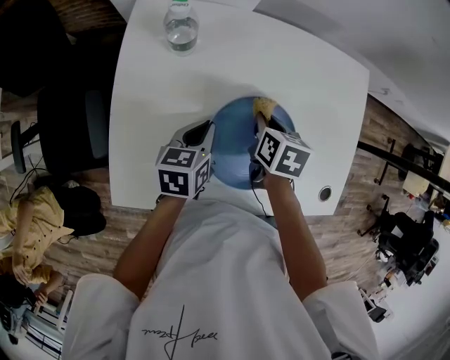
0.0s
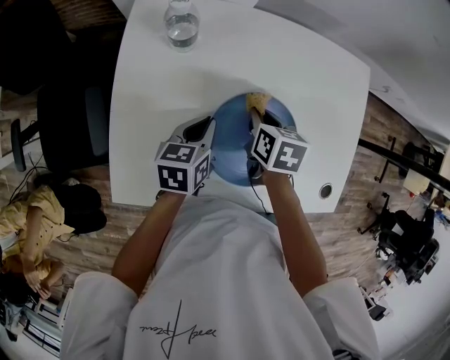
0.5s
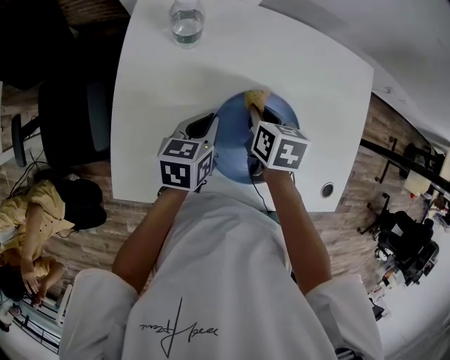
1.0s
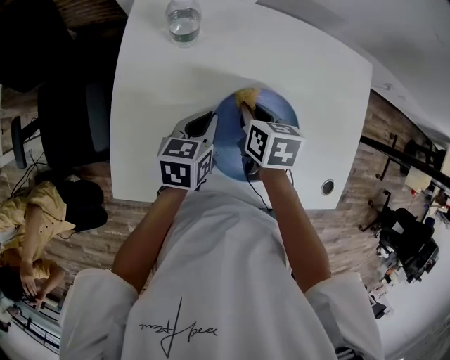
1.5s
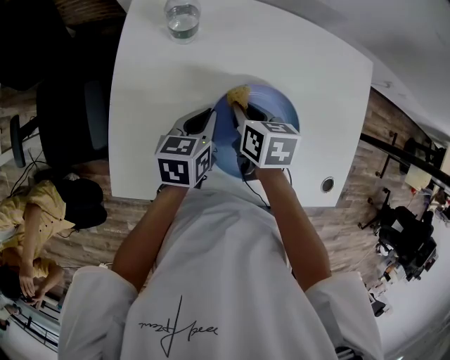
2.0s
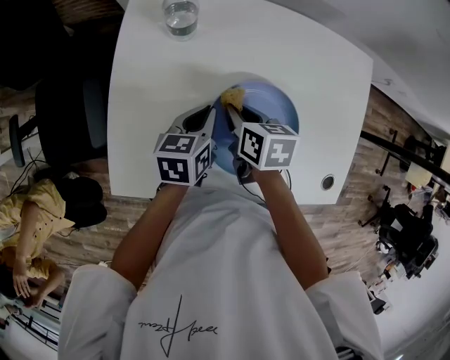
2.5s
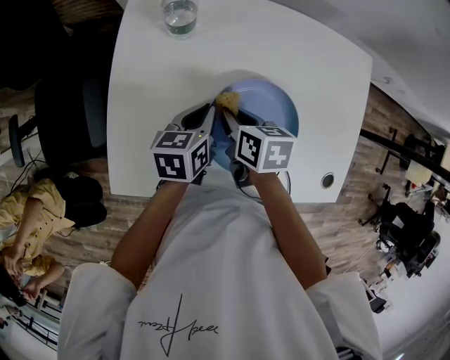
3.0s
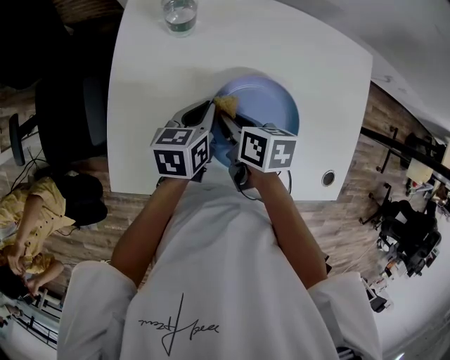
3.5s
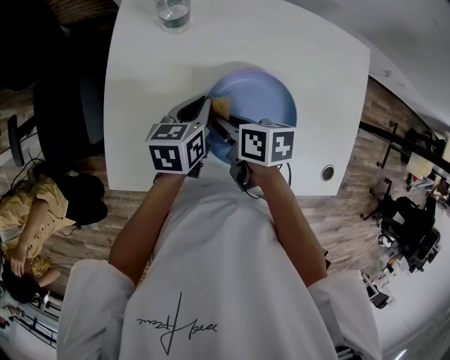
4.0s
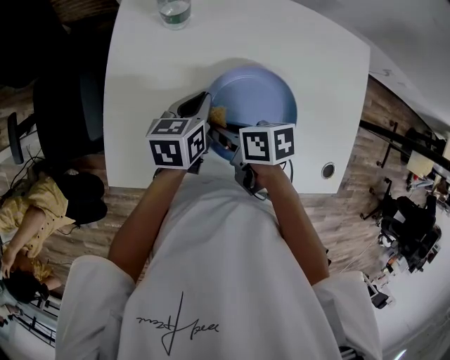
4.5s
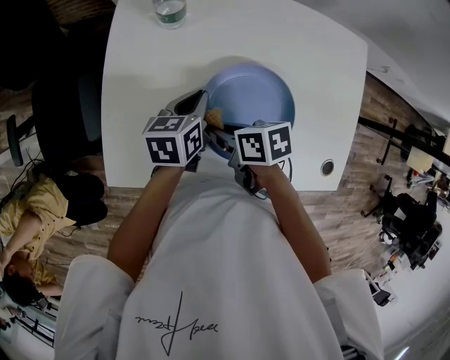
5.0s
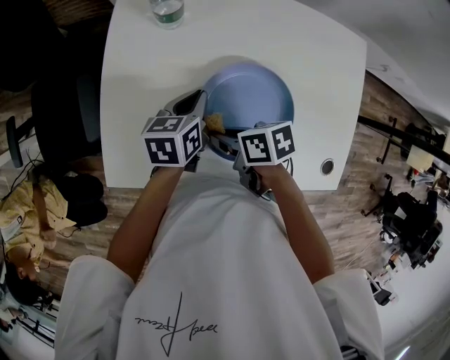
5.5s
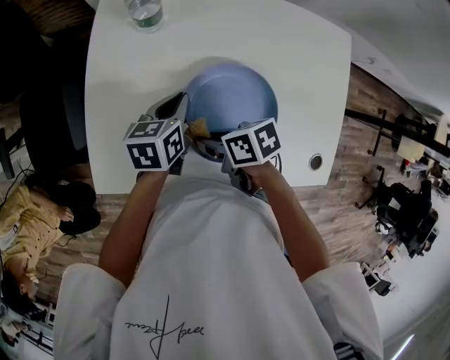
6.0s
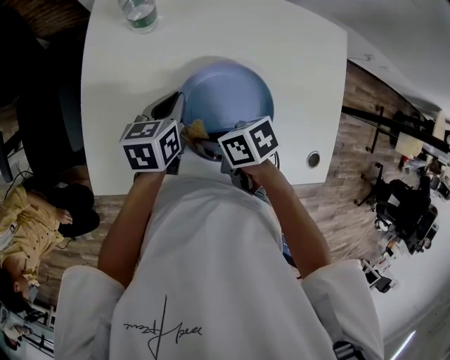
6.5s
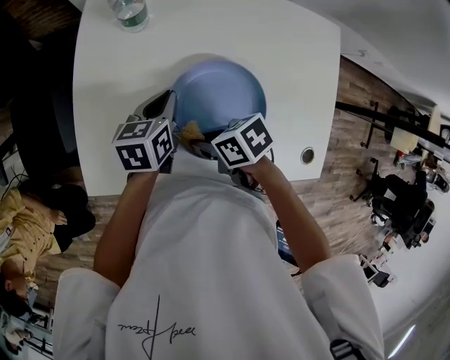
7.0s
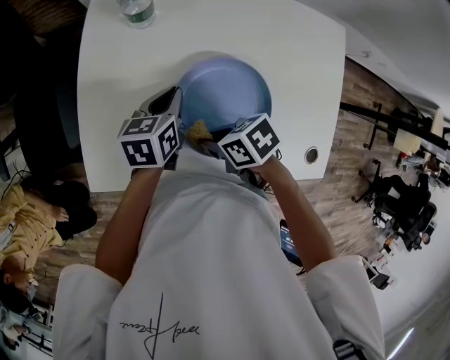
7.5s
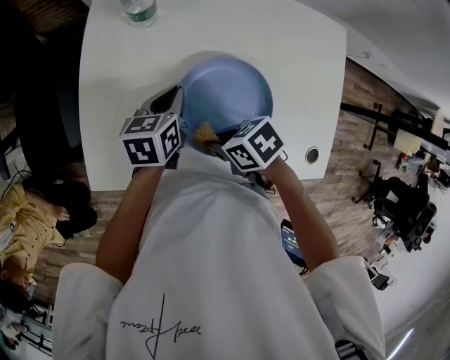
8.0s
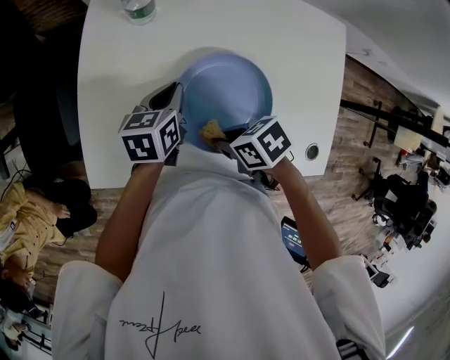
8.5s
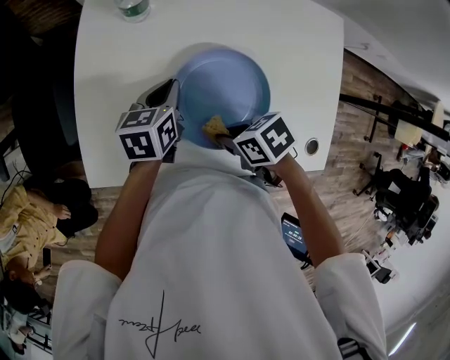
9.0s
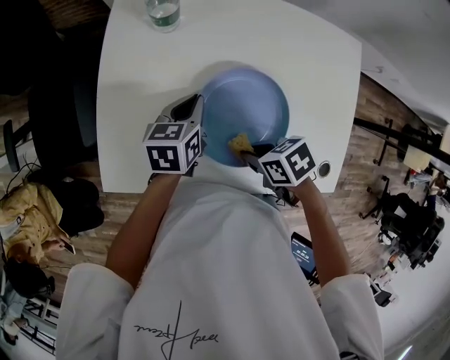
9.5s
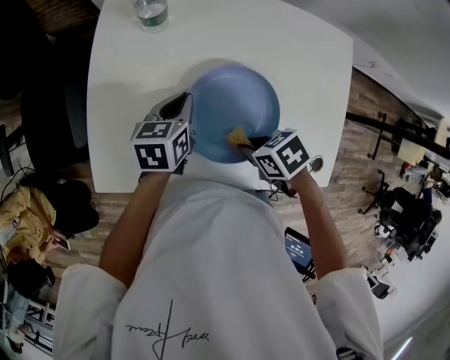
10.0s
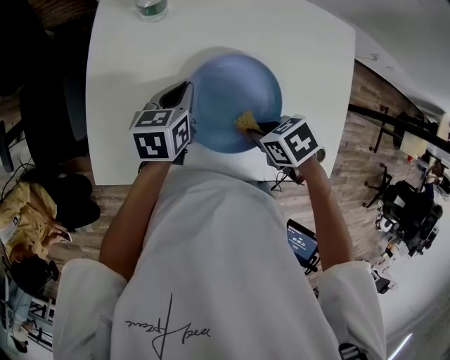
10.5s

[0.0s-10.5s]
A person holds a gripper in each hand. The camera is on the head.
0.0s to 2.0s: The right gripper travels to the left by roughly 5 cm.
2.0s to 4.0s: The right gripper goes about 5 cm backward, and swivels about 20 degrees.
4.0s to 6.5s: The right gripper is displaced backward by roughly 5 cm, and turns by roughly 20 degrees.
6.5s to 8.5s: The right gripper moves about 5 cm.
8.5s to 10.5s: The right gripper changes place by roughly 10 cm.

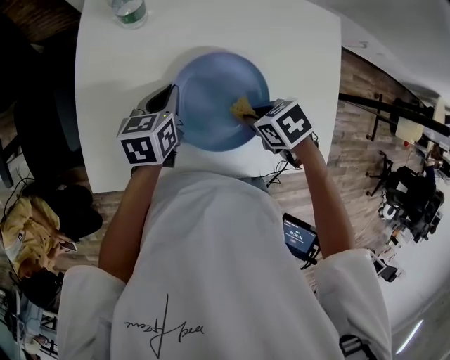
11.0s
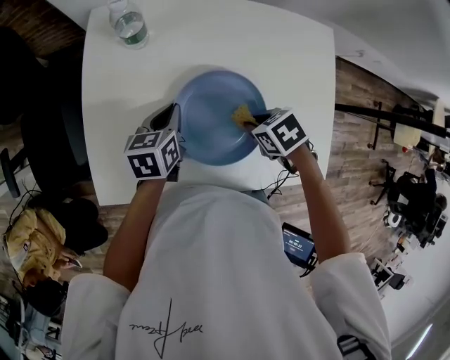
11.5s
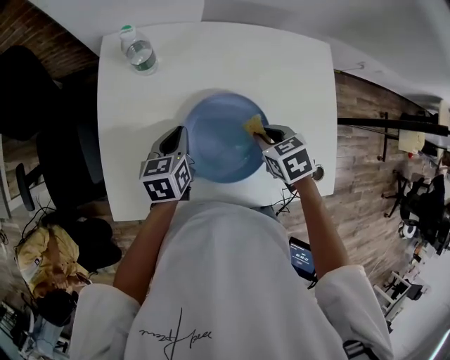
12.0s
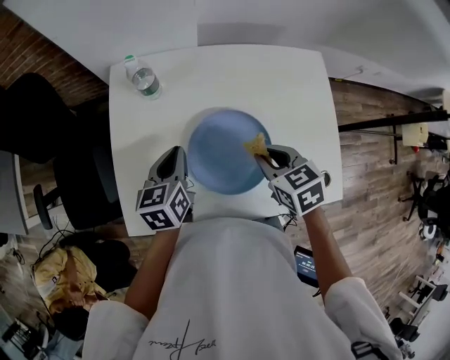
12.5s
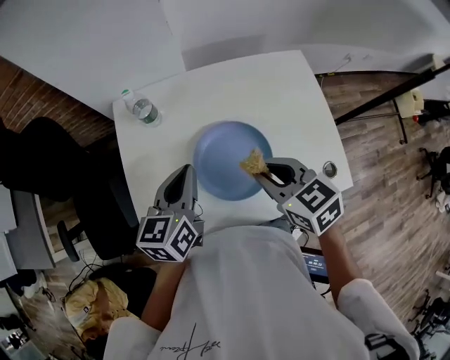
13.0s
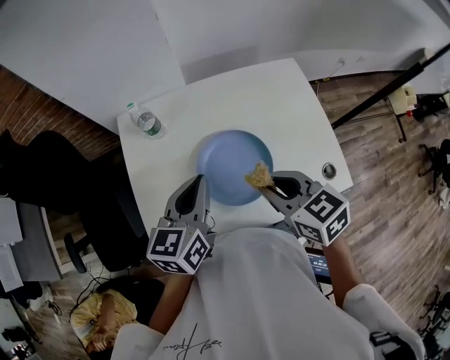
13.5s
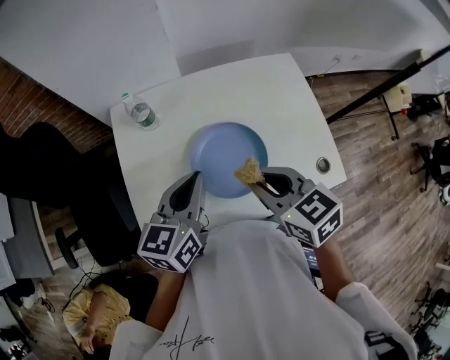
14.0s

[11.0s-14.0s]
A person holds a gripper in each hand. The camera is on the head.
11.0s to 12.5s: Both grippers move upward, approximately 10 cm. The right gripper turns by roughly 40 degrees.
12.5s to 14.0s: The two grippers go some 15 cm upward and backward. The left gripper swivels some 30 degrees.

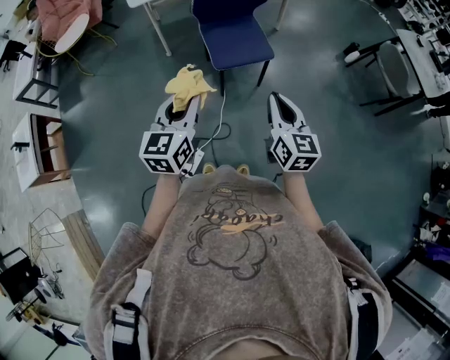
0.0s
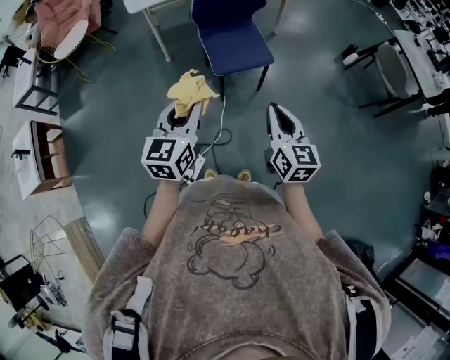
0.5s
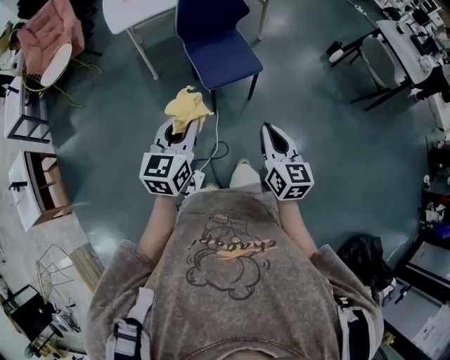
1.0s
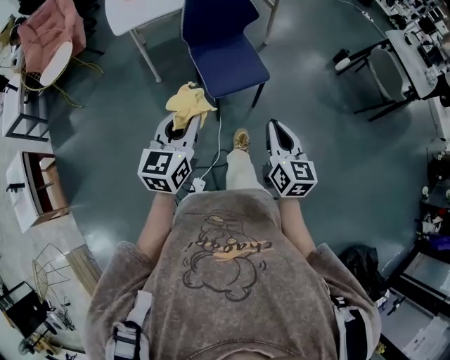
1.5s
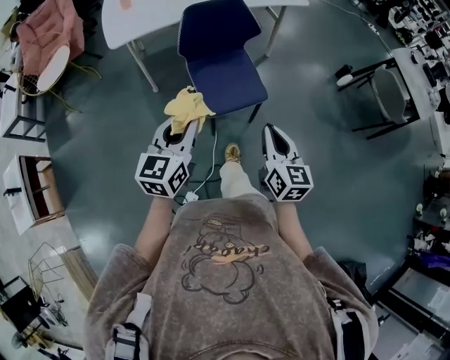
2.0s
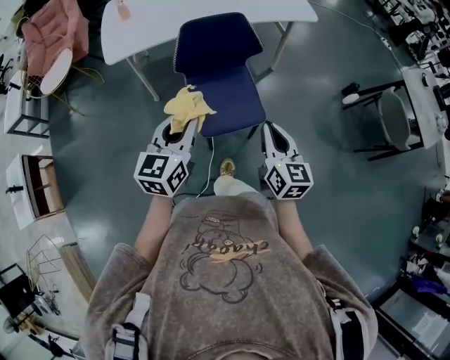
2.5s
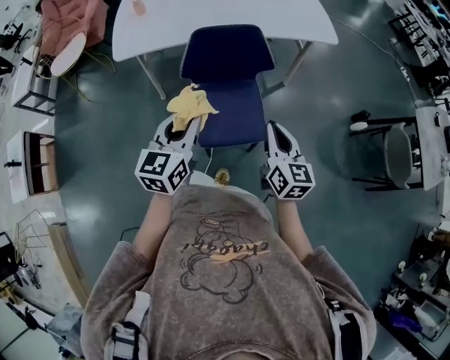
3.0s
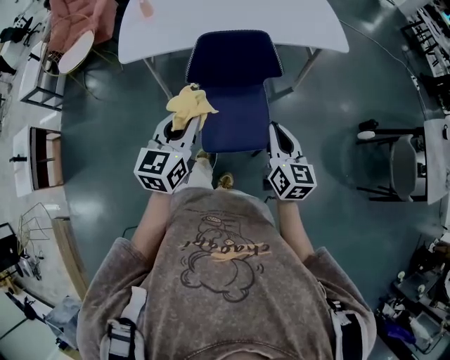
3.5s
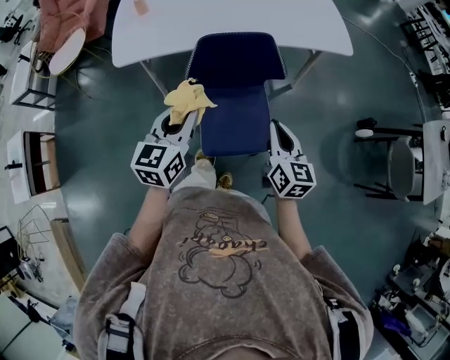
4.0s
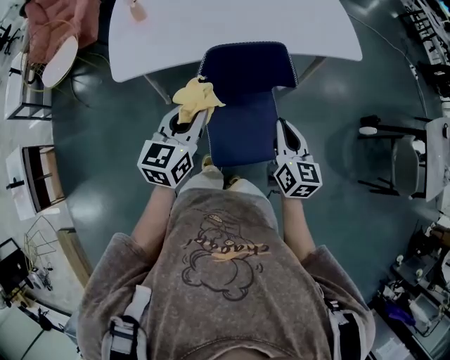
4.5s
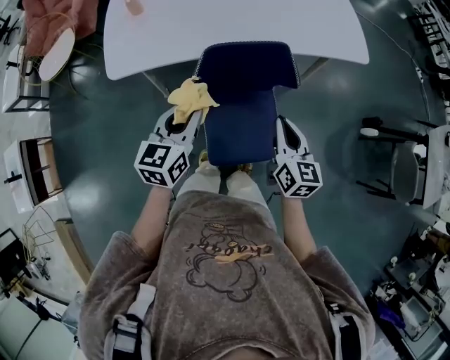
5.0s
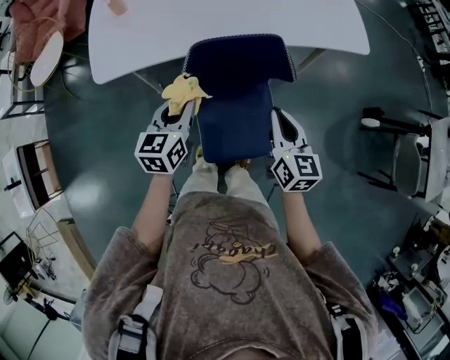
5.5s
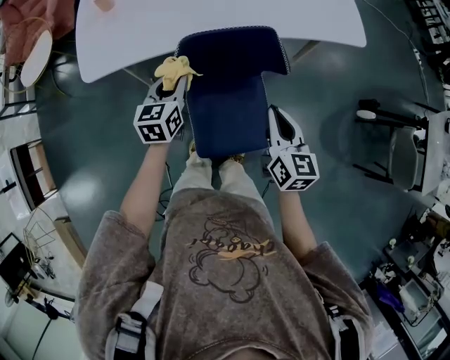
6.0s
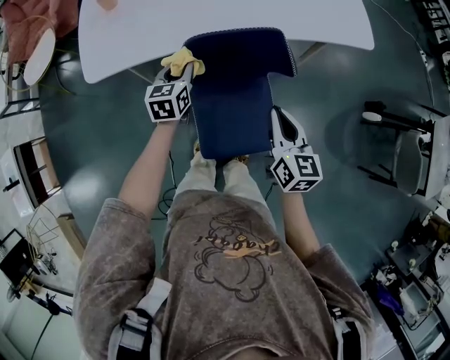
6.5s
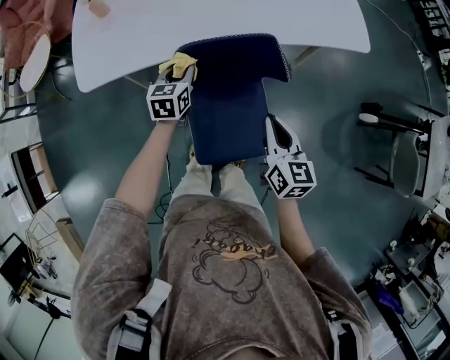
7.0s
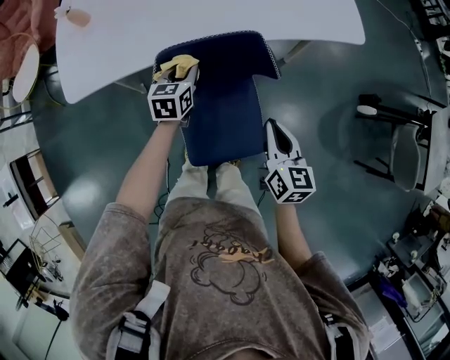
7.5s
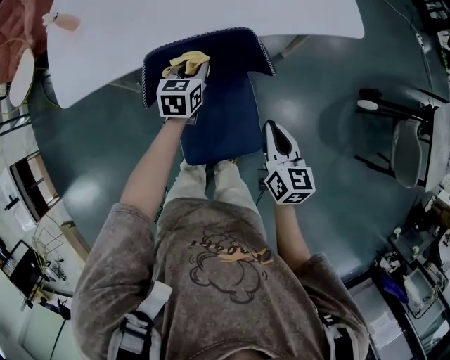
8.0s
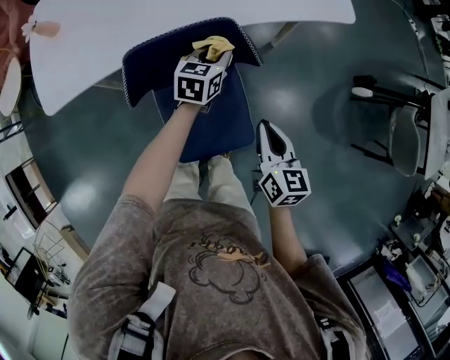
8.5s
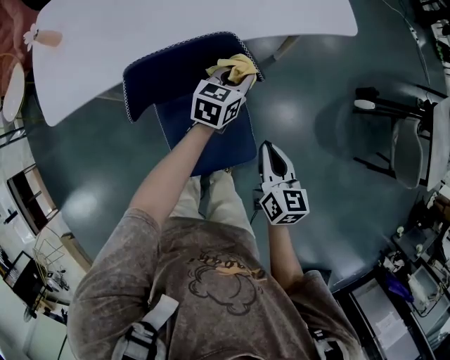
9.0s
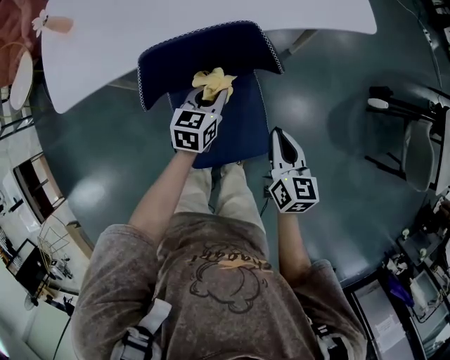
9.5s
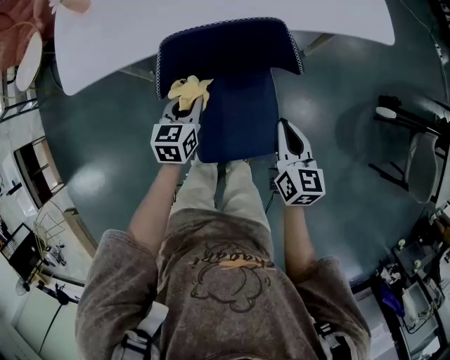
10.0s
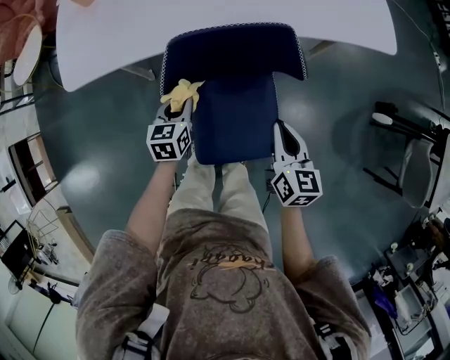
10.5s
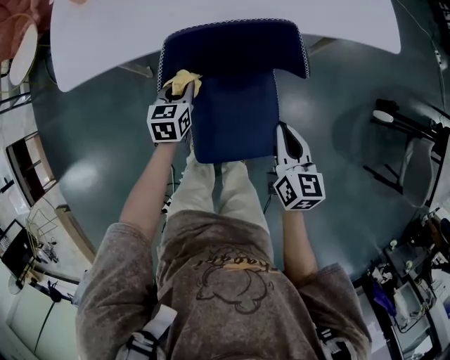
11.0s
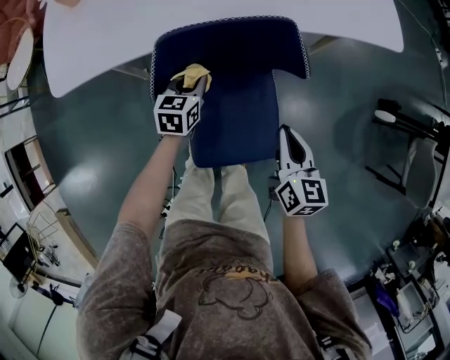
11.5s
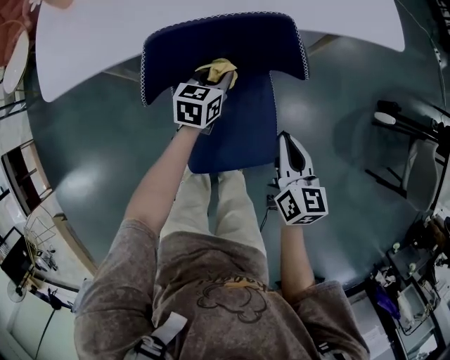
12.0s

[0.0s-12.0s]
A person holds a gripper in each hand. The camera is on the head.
0.0s to 2.0s: The grippers both shift forward by approximately 20 cm.
2.0s to 4.0s: The grippers both shift forward by approximately 30 cm.
4.0s to 6.0s: The left gripper shifts about 25 cm forward and downward. The right gripper travels forward and downward by approximately 15 cm.
6.0s to 8.0s: The right gripper travels to the right and downward by approximately 10 cm. The left gripper travels to the right, forward and downward by approximately 20 cm.
8.0s to 10.0s: The left gripper heads backward, covering roughly 10 cm, and travels to the right and back again, about 15 cm each way, while the right gripper shifts roughly 5 cm downward.
10.0s to 12.0s: The left gripper heads forward, to the right and downward, covering about 15 cm.

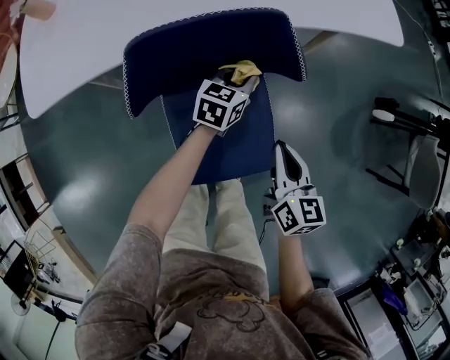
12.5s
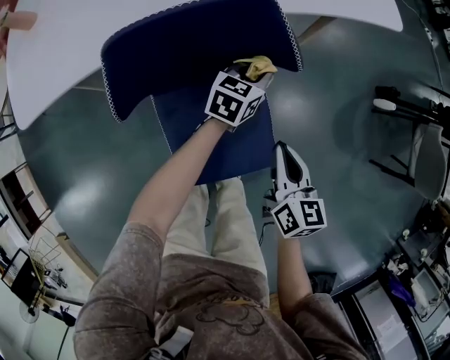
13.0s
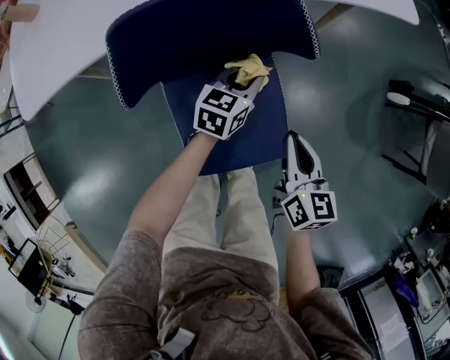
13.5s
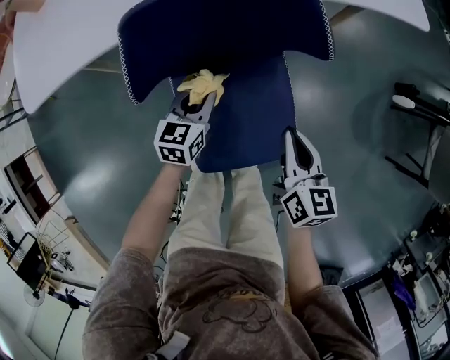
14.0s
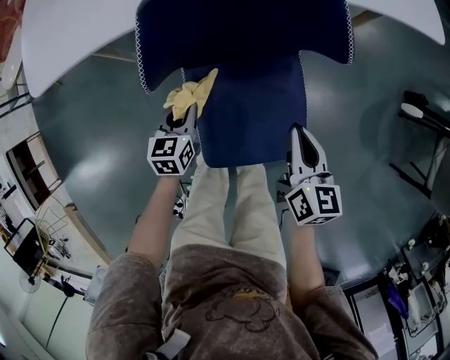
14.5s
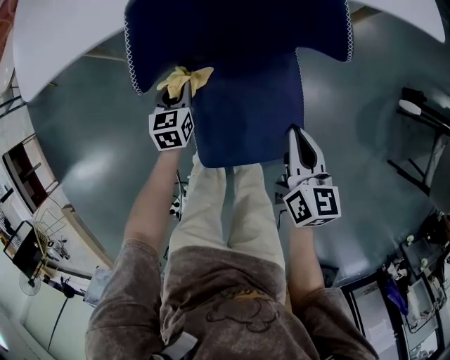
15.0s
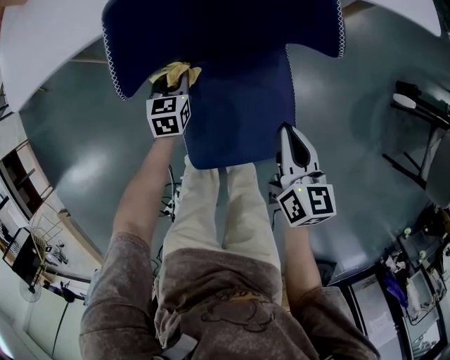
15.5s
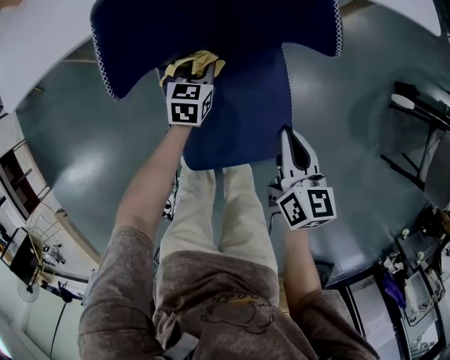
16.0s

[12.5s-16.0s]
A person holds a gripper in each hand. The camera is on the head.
12.5s to 14.5s: The right gripper shifts some 5 cm downward, while the left gripper moves to the left and backward, approximately 25 cm, and changes its angle by some 30 degrees.
14.5s to 16.0s: The left gripper is displaced to the right, forward and downward by about 15 cm.
